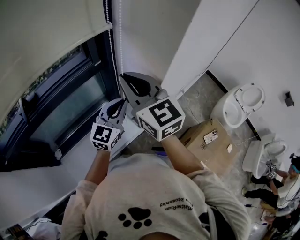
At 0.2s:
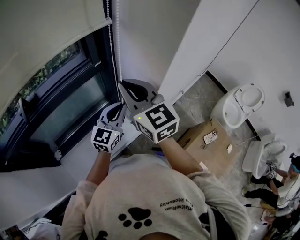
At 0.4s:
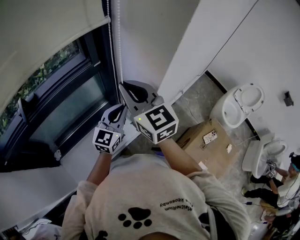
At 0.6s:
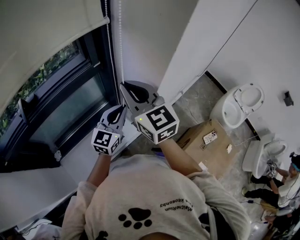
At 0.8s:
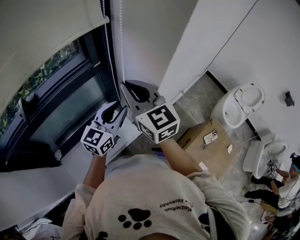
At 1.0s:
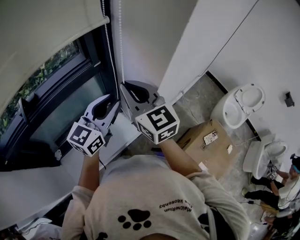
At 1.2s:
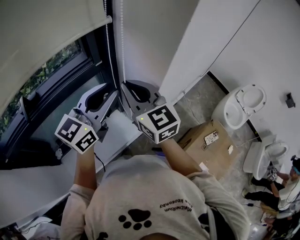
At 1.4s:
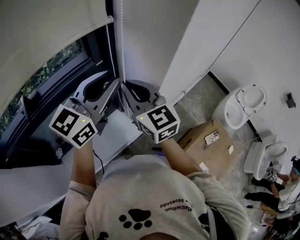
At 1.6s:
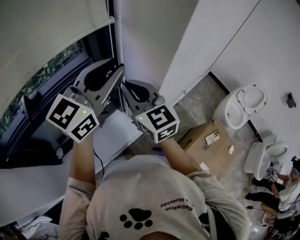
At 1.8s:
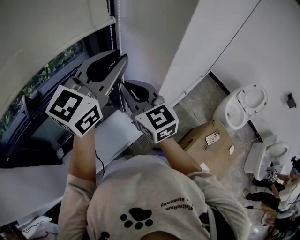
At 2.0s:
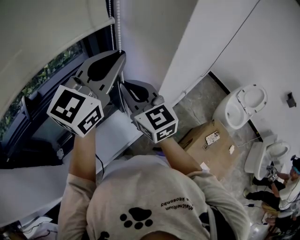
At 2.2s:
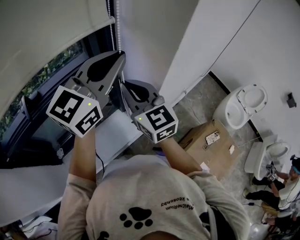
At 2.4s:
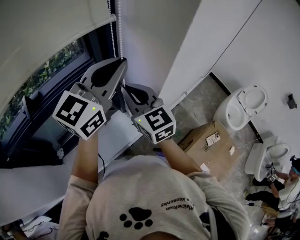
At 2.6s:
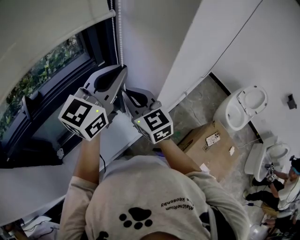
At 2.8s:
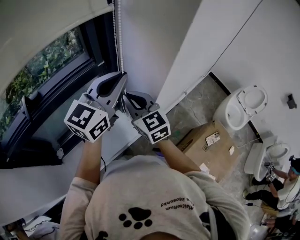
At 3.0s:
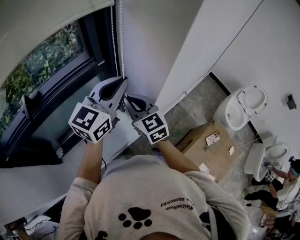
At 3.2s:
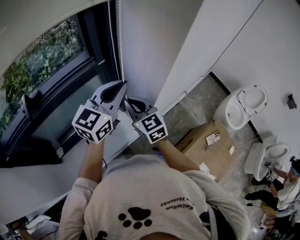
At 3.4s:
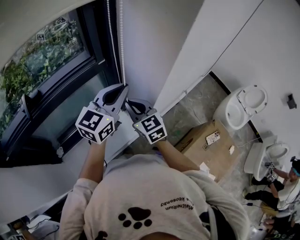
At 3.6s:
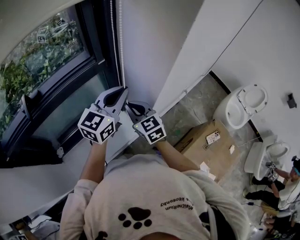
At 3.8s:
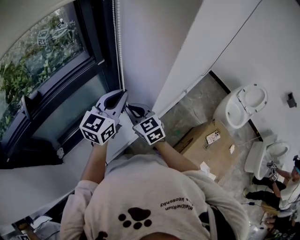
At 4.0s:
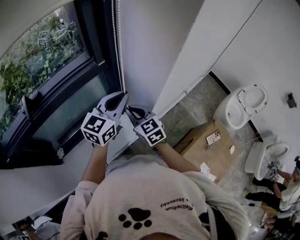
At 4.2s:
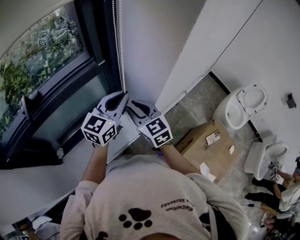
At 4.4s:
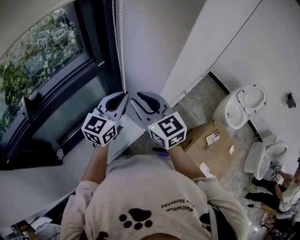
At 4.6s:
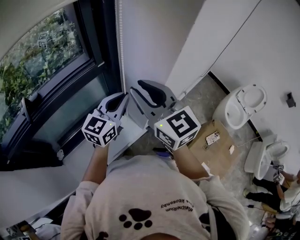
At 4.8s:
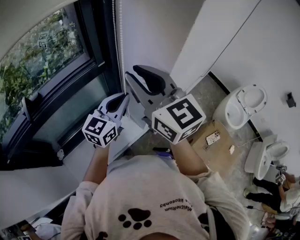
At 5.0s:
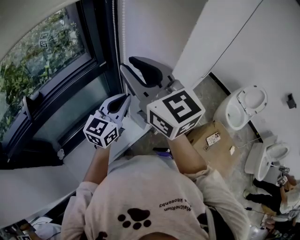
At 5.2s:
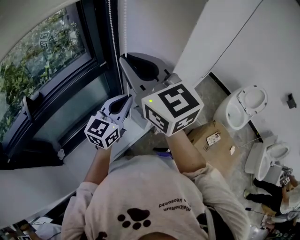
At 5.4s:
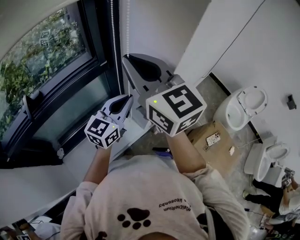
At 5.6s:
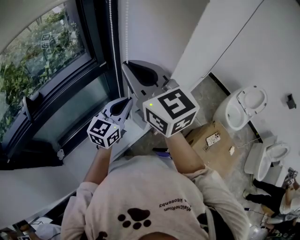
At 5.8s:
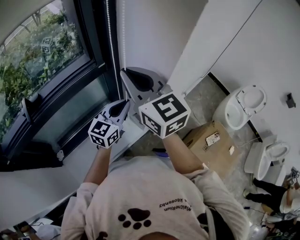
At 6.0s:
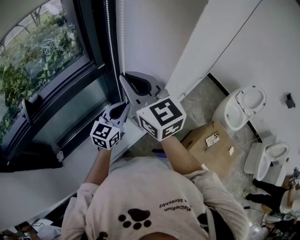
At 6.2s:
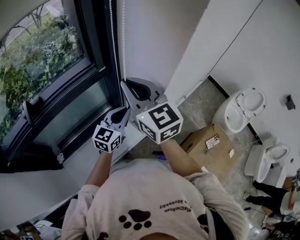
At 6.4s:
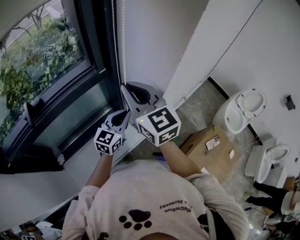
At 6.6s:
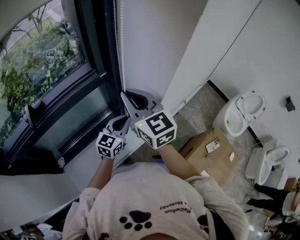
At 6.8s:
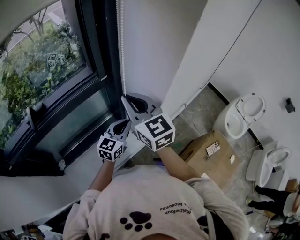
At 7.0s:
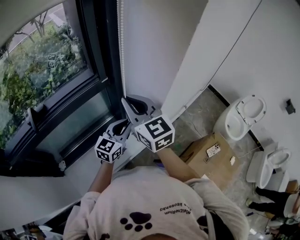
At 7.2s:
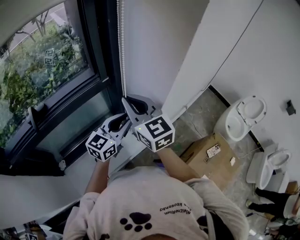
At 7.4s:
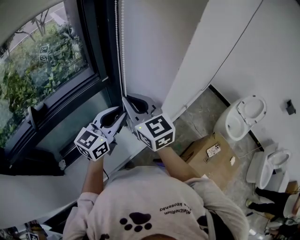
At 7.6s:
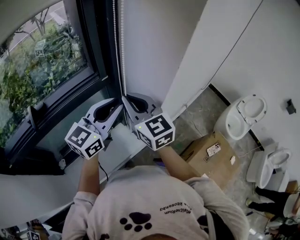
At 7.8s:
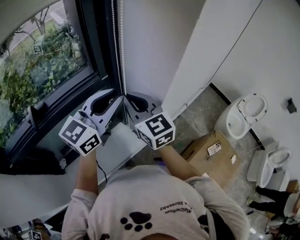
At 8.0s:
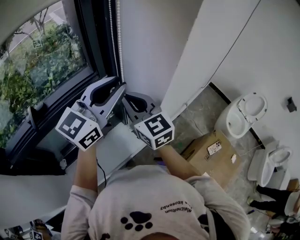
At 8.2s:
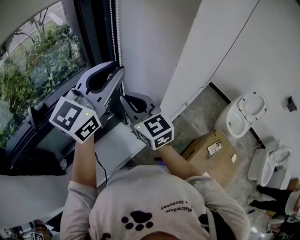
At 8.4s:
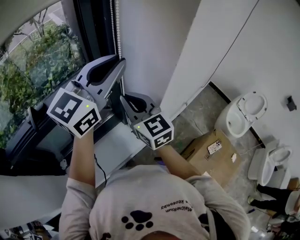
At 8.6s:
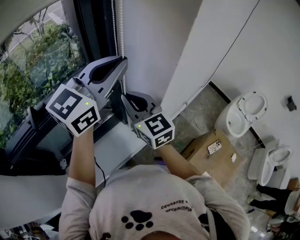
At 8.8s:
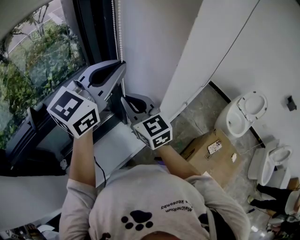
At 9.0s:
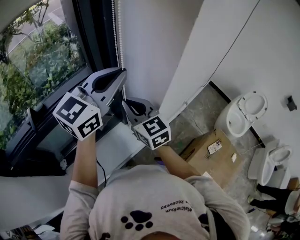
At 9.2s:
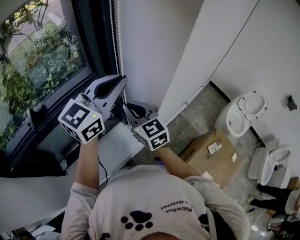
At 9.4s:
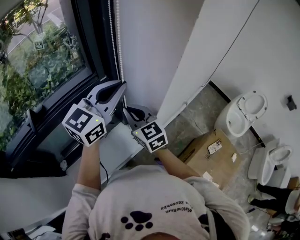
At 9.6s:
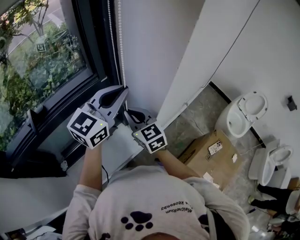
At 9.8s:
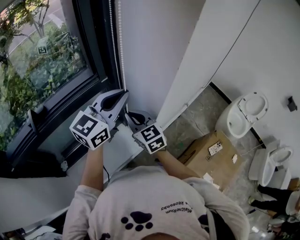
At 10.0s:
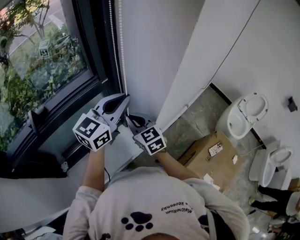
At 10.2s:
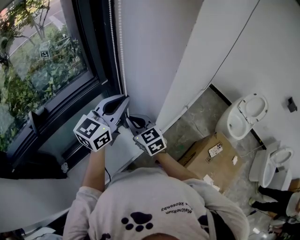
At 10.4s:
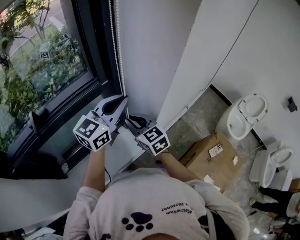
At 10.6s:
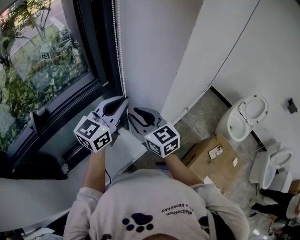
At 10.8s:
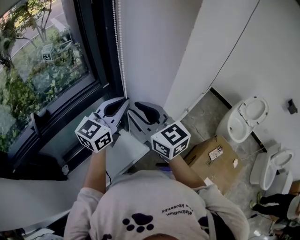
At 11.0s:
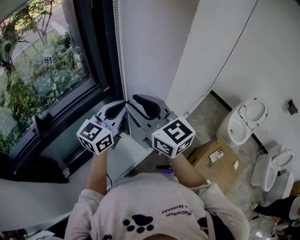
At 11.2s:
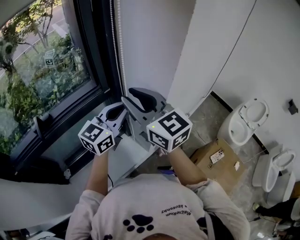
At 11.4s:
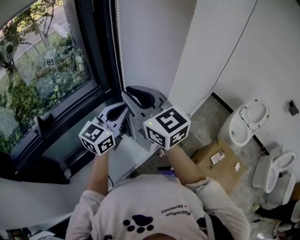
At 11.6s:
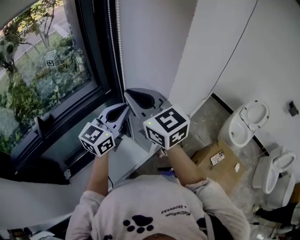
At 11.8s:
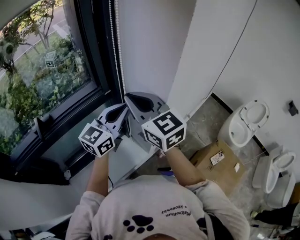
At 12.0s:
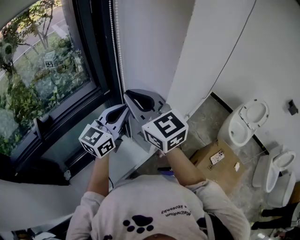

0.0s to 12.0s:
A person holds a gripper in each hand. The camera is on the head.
0.0s to 1.6s: The left gripper is displaced upward by roughly 20 cm, and opens up.
1.6s to 3.0s: Both grippers travel together downward, some 10 cm. The left gripper closes.
3.0s to 4.4s: The left gripper shifts roughly 10 cm downward; the right gripper ends up roughly 5 cm from where it was, and opens.
4.4s to 6.0s: The left gripper travels downward by about 5 cm, while the right gripper goes roughly 10 cm upward, and closes its fingers.
6.0s to 7.6s: The right gripper goes some 5 cm downward; the left gripper shifts approximately 15 cm upward, and opens up.
7.6s to 9.0s: The left gripper moves upward, some 10 cm, and closes up.
9.0s to 10.4s: Both grippers move downward, roughly 10 cm.
10.4s to 12.0s: The right gripper shifts roughly 20 cm upward.

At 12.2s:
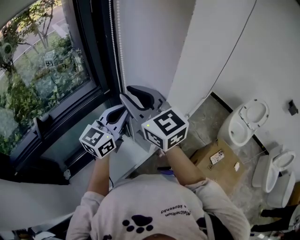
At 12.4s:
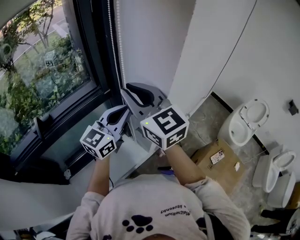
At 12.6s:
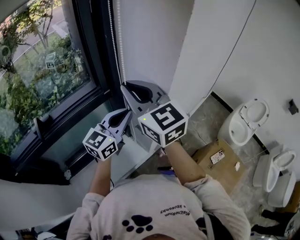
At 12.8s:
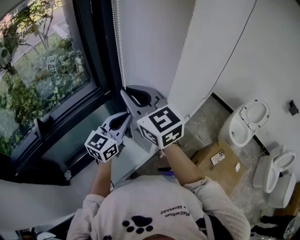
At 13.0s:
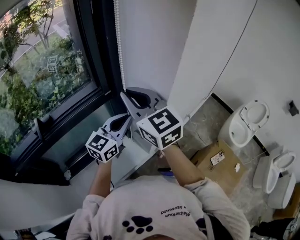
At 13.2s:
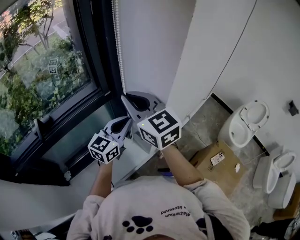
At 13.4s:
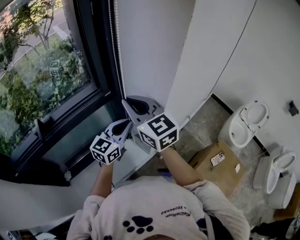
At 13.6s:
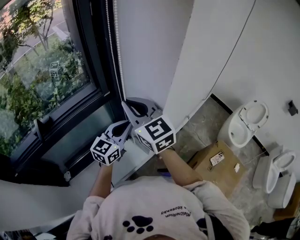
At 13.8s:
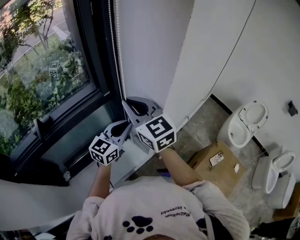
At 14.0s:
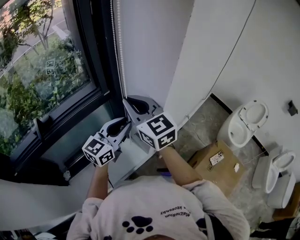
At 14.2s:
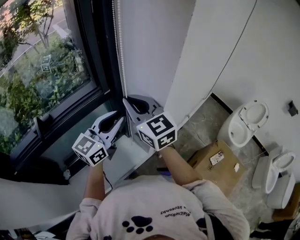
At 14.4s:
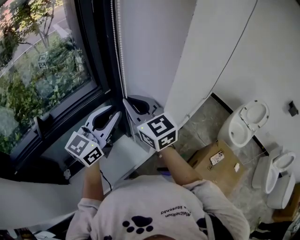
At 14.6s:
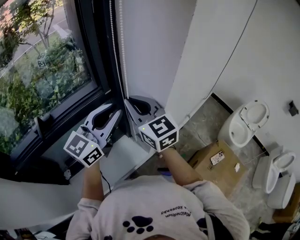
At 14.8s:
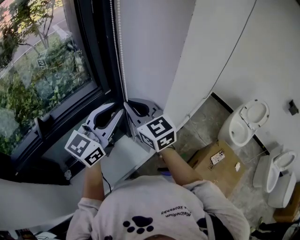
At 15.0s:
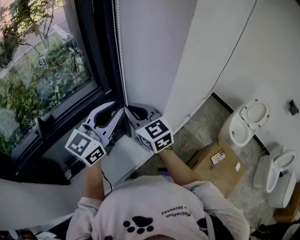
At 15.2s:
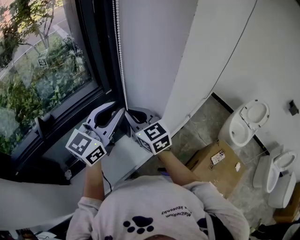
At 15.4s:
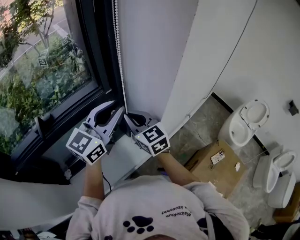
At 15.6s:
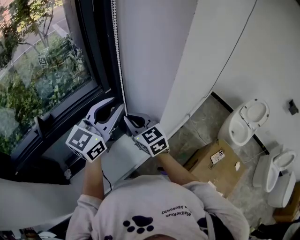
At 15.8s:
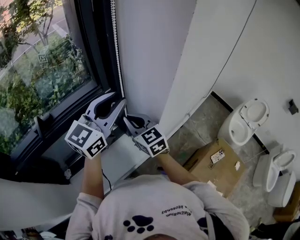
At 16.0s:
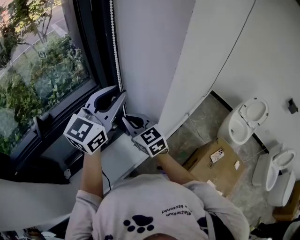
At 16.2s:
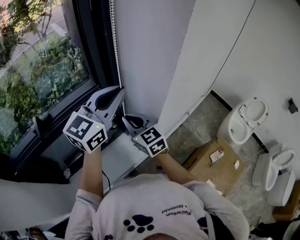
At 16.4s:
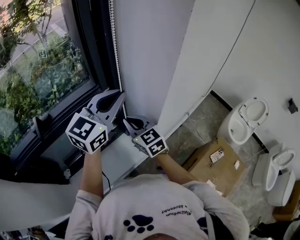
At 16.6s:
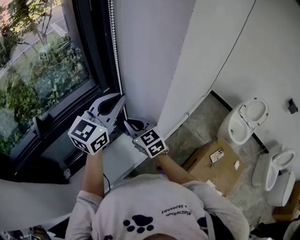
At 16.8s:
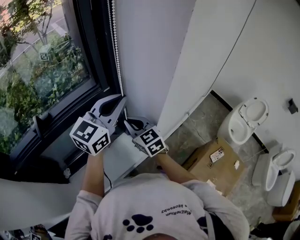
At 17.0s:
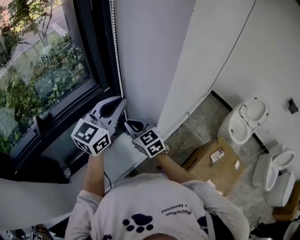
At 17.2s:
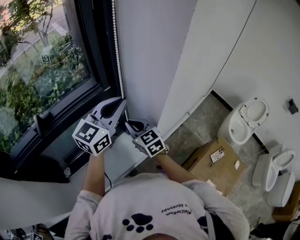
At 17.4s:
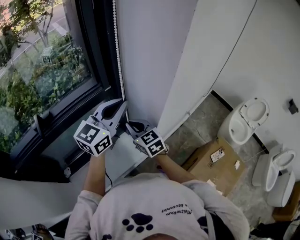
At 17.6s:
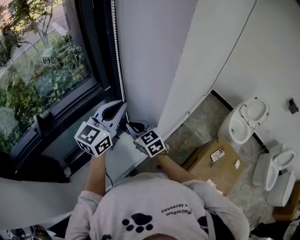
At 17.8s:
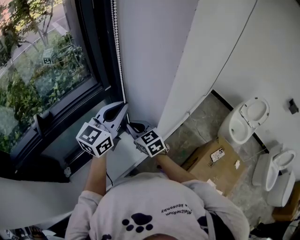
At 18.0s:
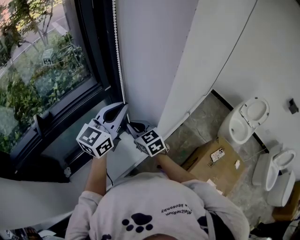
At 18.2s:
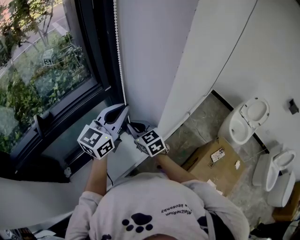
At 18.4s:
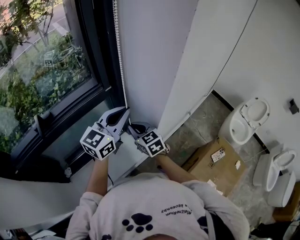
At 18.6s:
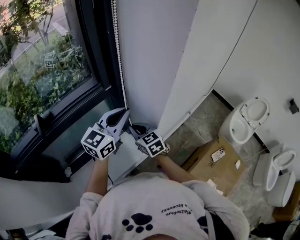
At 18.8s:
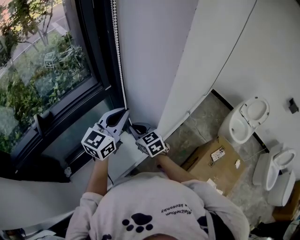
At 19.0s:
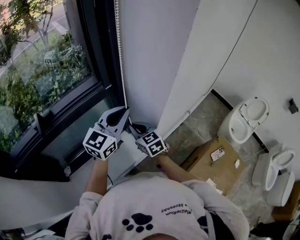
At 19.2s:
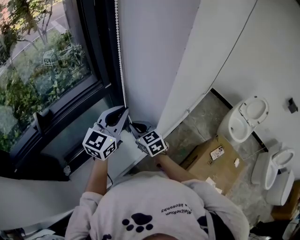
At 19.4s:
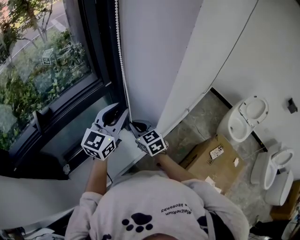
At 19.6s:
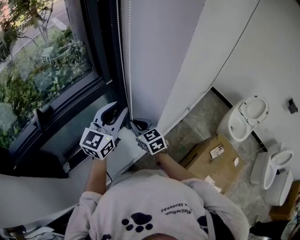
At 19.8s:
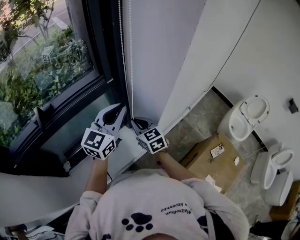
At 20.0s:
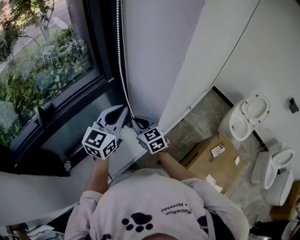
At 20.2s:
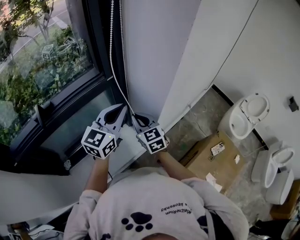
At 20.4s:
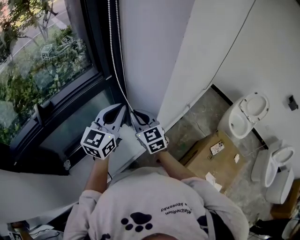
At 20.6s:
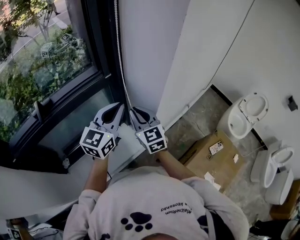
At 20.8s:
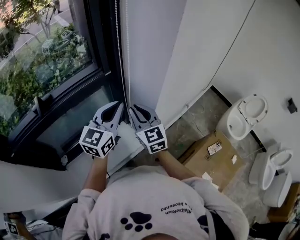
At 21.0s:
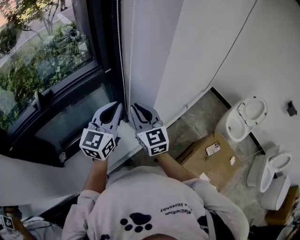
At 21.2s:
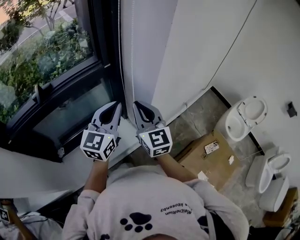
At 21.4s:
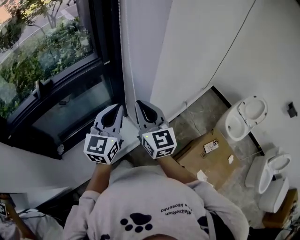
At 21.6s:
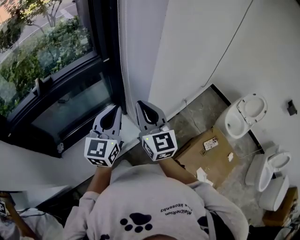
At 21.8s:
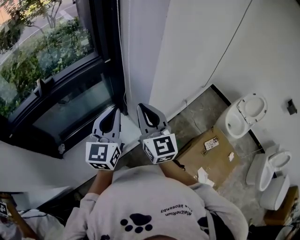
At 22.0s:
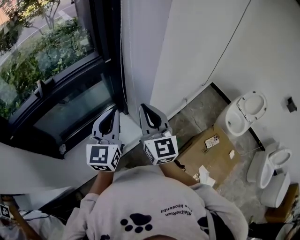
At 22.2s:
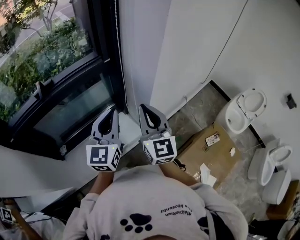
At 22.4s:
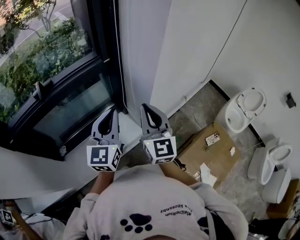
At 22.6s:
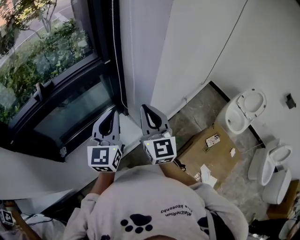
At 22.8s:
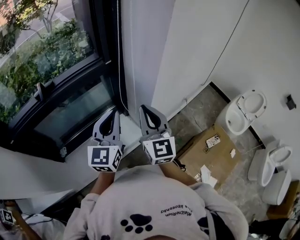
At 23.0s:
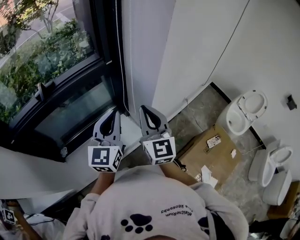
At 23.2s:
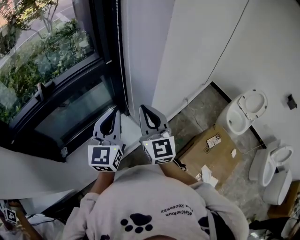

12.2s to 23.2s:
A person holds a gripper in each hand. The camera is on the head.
12.2s to 13.8s: The right gripper is displaced downward by roughly 5 cm. The left gripper goes approximately 10 cm downward.
13.8s to 15.4s: The right gripper moves downward, about 10 cm, while the left gripper moves upward, about 15 cm.
15.4s to 17.0s: The right gripper goes roughly 5 cm downward.
17.0s to 18.4s: The left gripper travels downward by about 5 cm.
18.4s to 20.0s: The left gripper opens, then closes once more.
20.0s to 21.6s: The left gripper is displaced backward by approximately 10 cm, while the right gripper heads upward, backward and to the right, covering some 20 cm, and swivels roughly 30 degrees.
21.6s to 23.2s: The grippers stay close to where they were, moving slightly.

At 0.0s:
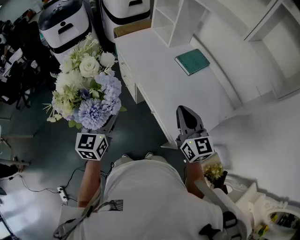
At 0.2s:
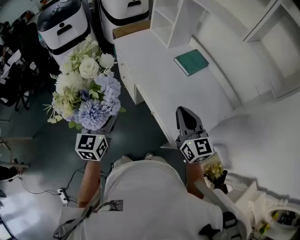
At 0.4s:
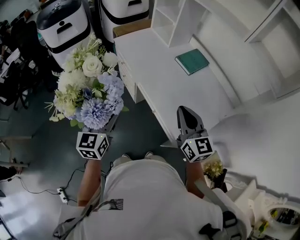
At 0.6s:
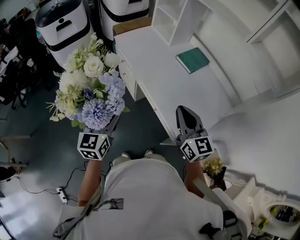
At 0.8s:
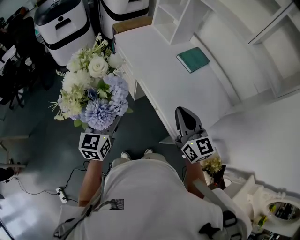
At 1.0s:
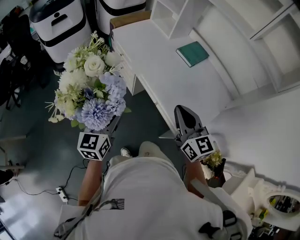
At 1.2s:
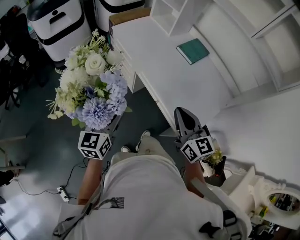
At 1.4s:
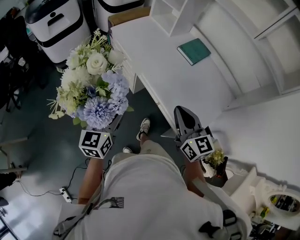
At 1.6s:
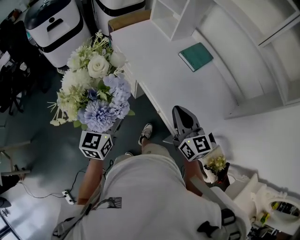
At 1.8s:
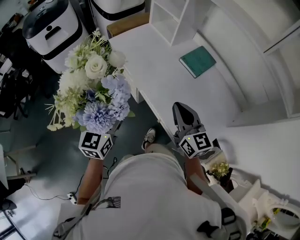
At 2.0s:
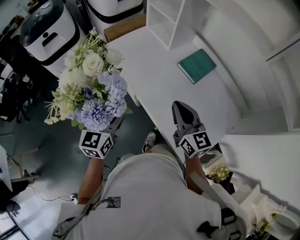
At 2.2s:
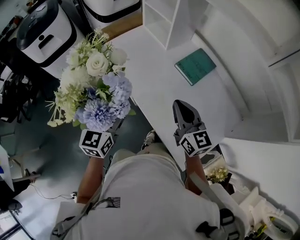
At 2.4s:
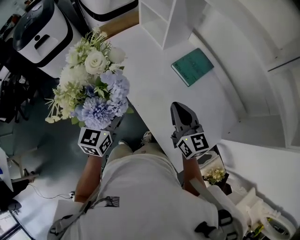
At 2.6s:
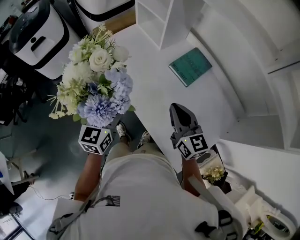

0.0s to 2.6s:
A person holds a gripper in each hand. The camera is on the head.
0.0s to 1.2s: The left gripper travels to the left by approximately 5 cm. Meanwhile the right gripper goes about 10 cm to the left.
1.2s to 2.6s: Both grippers travel together forward and to the right, some 30 cm.
